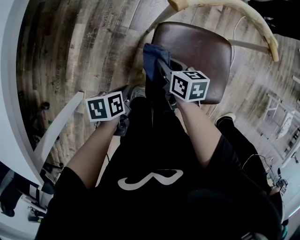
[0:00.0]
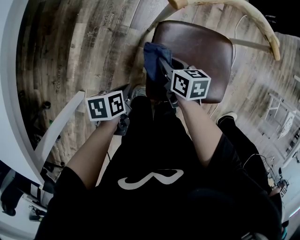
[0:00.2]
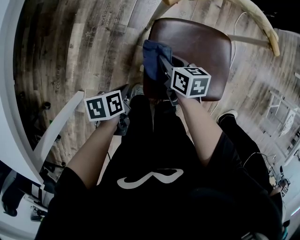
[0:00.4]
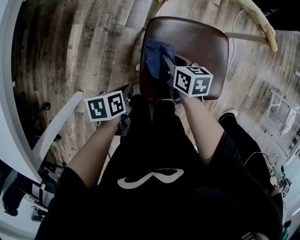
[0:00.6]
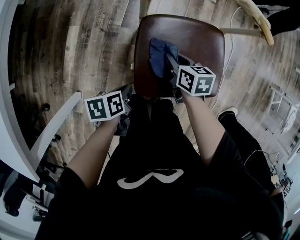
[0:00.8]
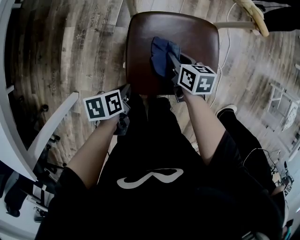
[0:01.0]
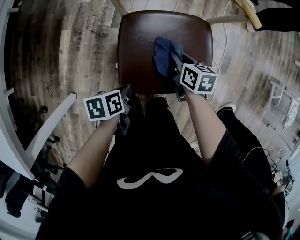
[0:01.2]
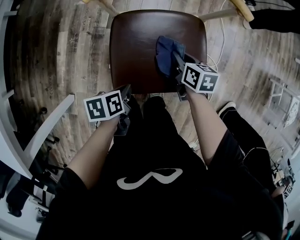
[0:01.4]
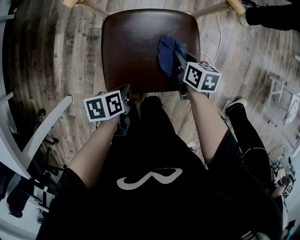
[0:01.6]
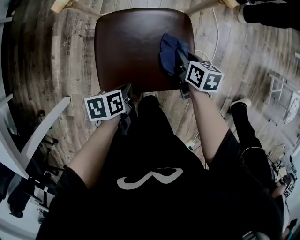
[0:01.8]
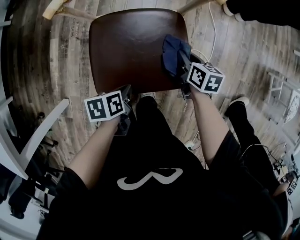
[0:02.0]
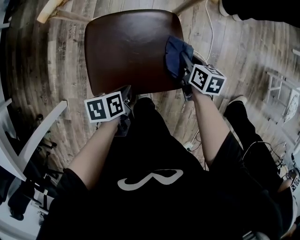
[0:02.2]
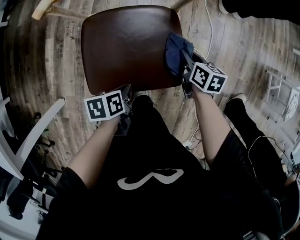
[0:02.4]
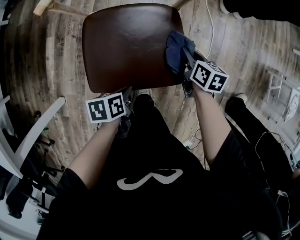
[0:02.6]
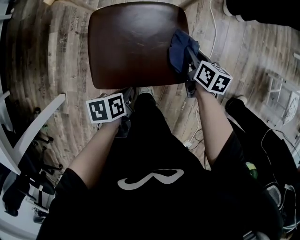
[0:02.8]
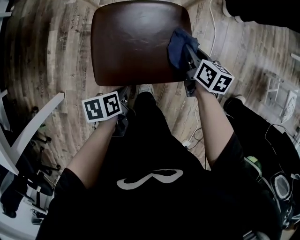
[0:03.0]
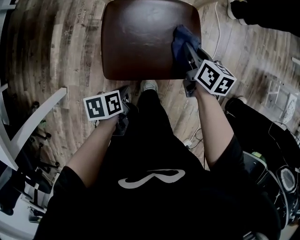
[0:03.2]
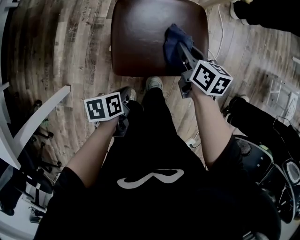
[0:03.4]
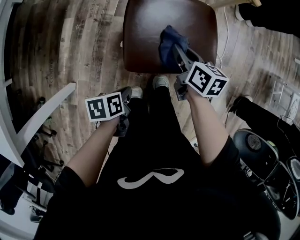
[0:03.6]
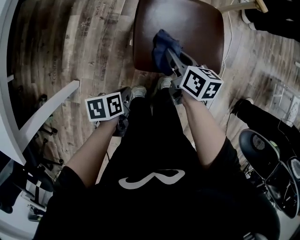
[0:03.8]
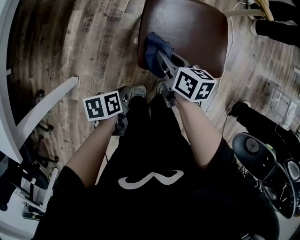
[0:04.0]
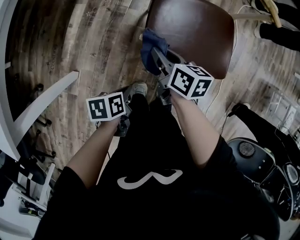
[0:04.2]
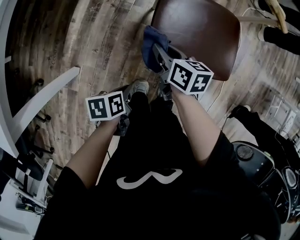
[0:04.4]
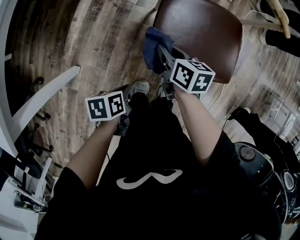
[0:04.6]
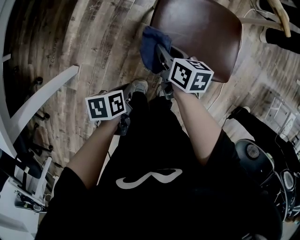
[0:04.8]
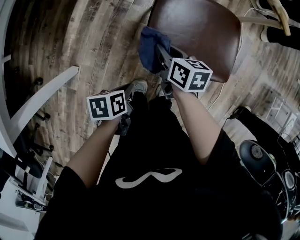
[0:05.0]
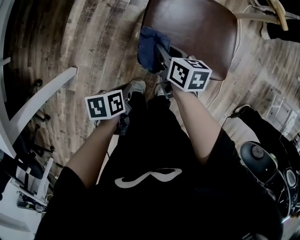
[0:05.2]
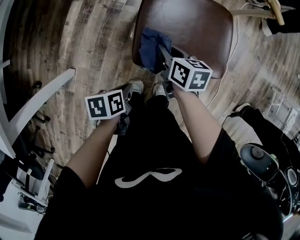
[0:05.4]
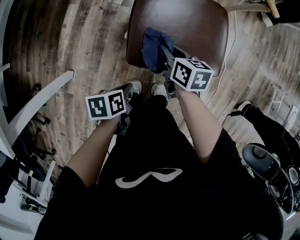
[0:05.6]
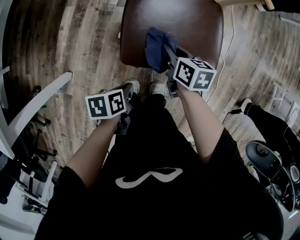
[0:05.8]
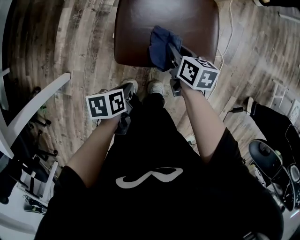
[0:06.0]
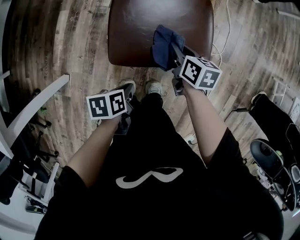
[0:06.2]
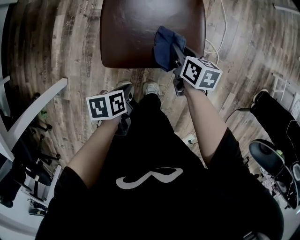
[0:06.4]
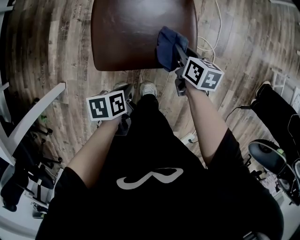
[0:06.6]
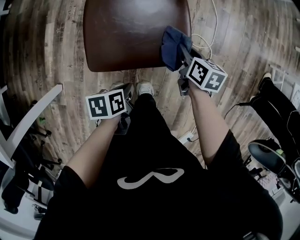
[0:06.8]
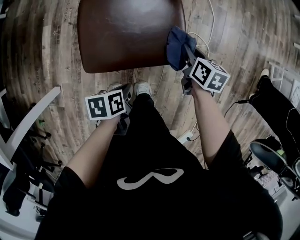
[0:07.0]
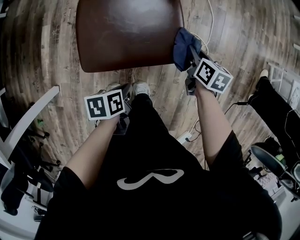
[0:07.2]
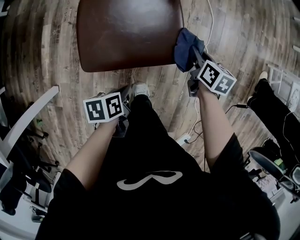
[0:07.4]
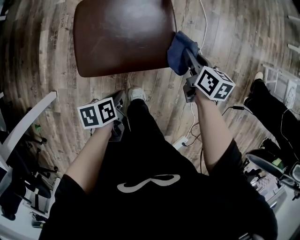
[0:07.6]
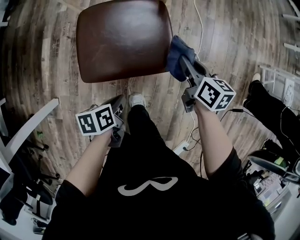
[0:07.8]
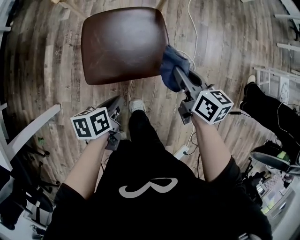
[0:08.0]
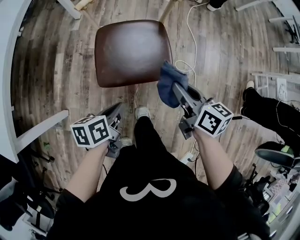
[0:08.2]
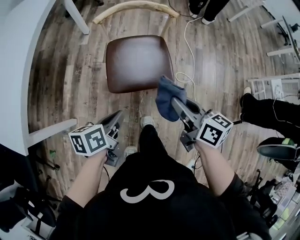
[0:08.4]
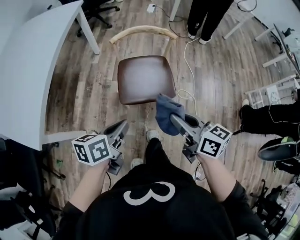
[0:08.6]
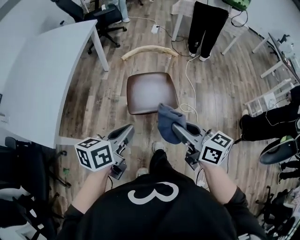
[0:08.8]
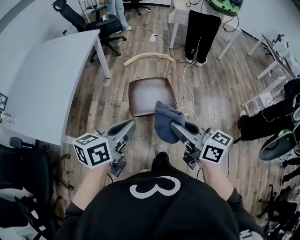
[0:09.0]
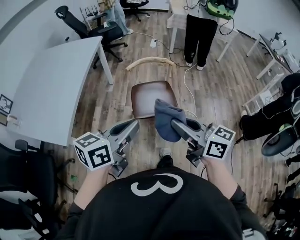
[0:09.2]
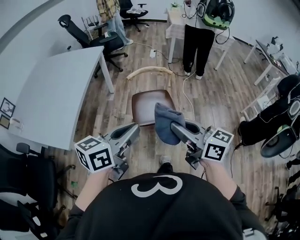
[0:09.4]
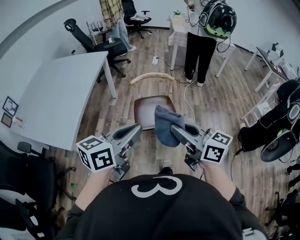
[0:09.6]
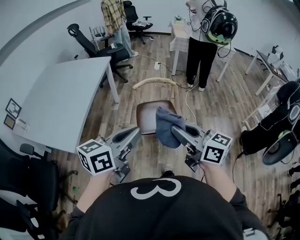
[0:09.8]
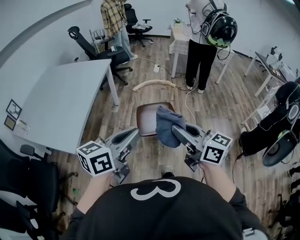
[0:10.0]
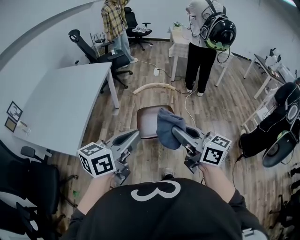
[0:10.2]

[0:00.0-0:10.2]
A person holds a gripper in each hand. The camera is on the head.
0:00.0 to 0:01.4: The right gripper changes place by roughly 20 cm.
0:01.4 to 0:03.0: The right gripper ends up approximately 10 cm from where it was.
0:03.0 to 0:04.4: The right gripper shifts by roughly 35 cm.
0:04.4 to 0:05.8: The right gripper shifts by approximately 15 cm.
0:05.8 to 0:07.2: The right gripper changes place by about 25 cm.
0:07.2 to 0:08.8: The right gripper shifts about 50 cm upward, and angles its fingers upward, by some 40 degrees.
0:08.8 to 0:10.2: The right gripper is displaced upward by about 15 cm.

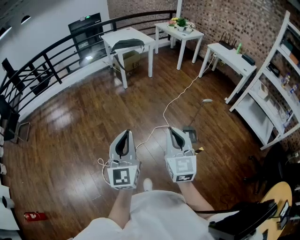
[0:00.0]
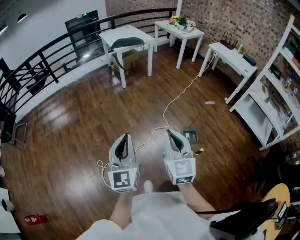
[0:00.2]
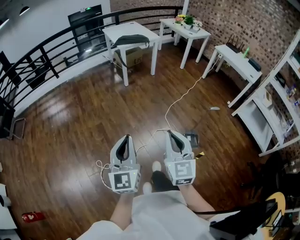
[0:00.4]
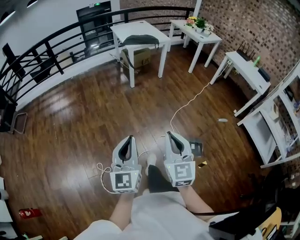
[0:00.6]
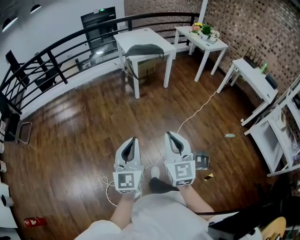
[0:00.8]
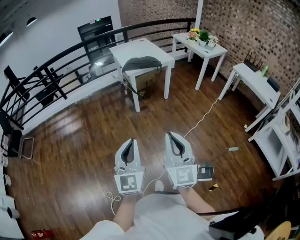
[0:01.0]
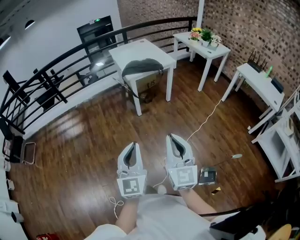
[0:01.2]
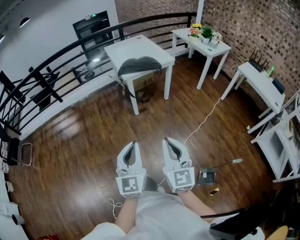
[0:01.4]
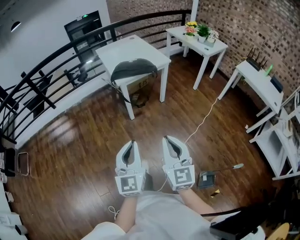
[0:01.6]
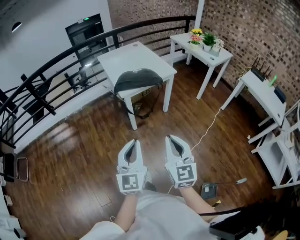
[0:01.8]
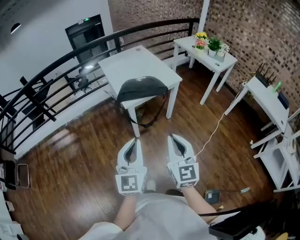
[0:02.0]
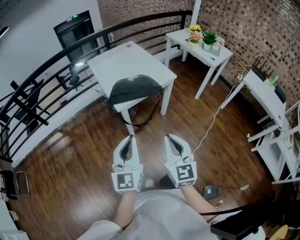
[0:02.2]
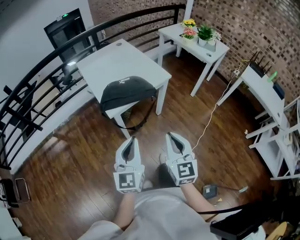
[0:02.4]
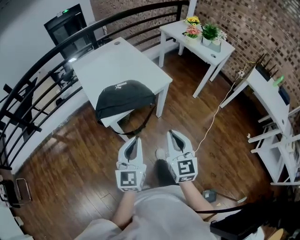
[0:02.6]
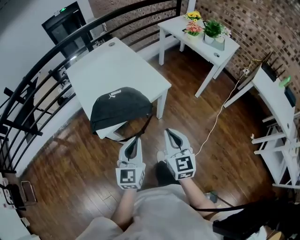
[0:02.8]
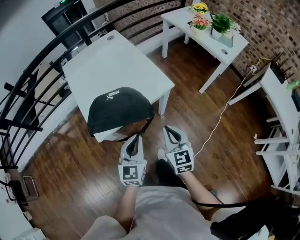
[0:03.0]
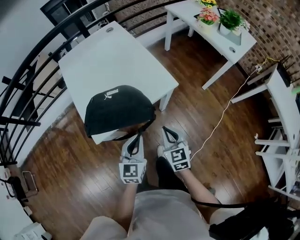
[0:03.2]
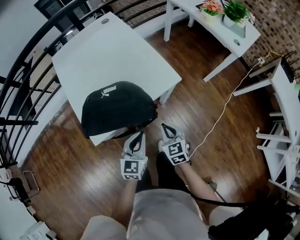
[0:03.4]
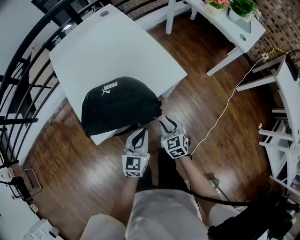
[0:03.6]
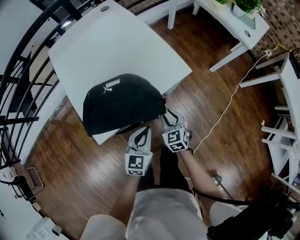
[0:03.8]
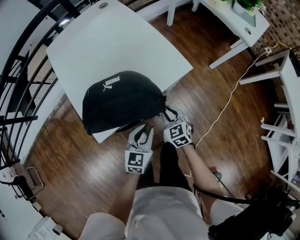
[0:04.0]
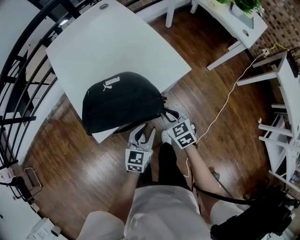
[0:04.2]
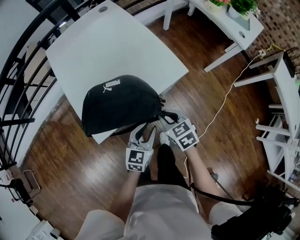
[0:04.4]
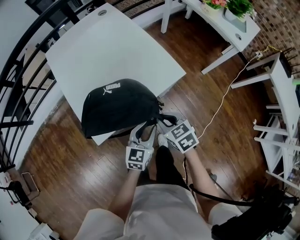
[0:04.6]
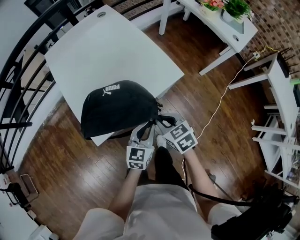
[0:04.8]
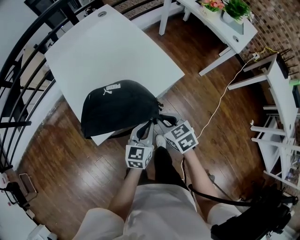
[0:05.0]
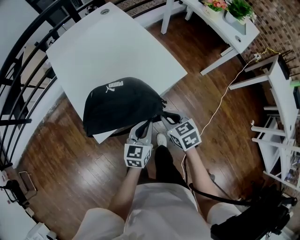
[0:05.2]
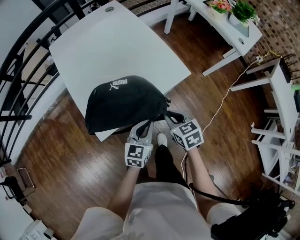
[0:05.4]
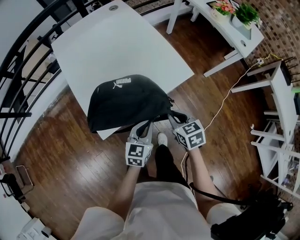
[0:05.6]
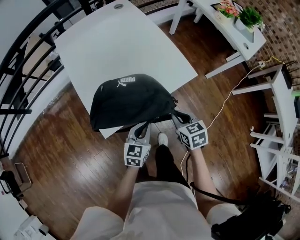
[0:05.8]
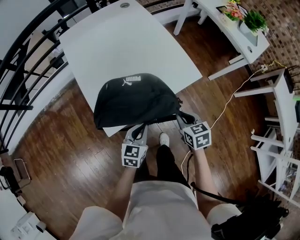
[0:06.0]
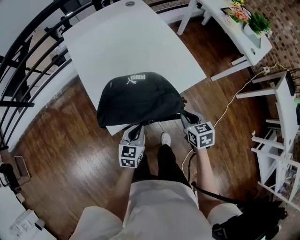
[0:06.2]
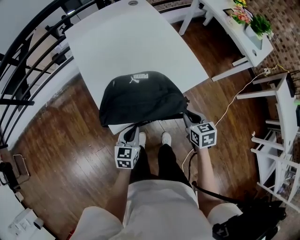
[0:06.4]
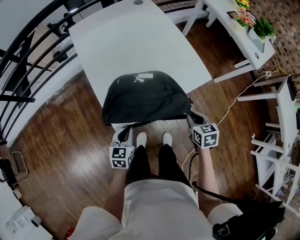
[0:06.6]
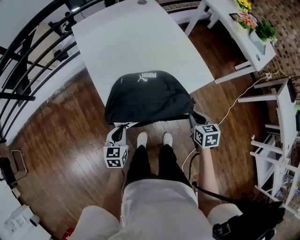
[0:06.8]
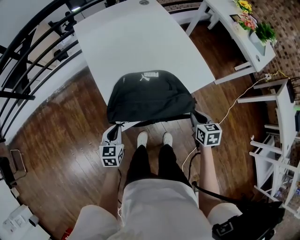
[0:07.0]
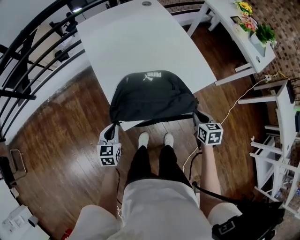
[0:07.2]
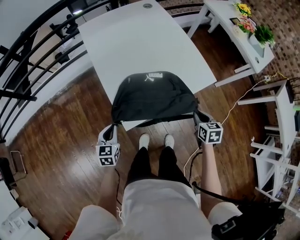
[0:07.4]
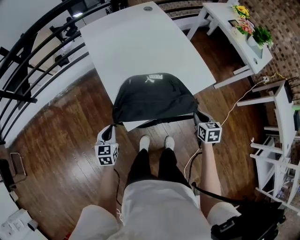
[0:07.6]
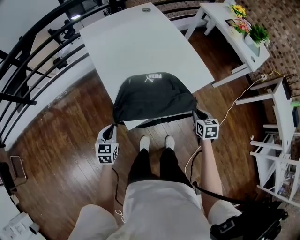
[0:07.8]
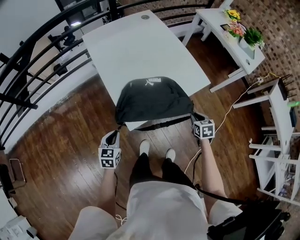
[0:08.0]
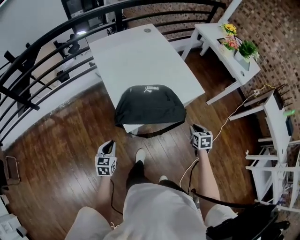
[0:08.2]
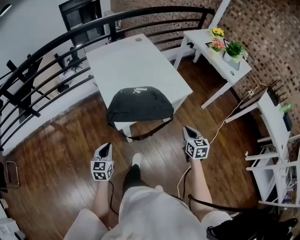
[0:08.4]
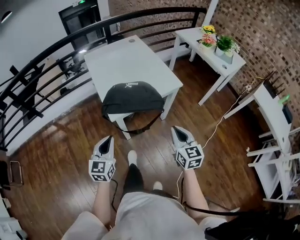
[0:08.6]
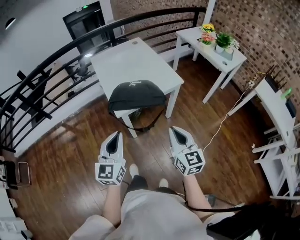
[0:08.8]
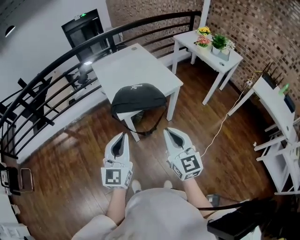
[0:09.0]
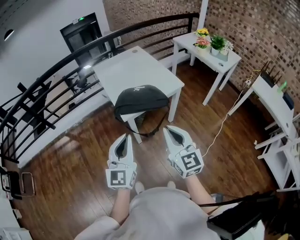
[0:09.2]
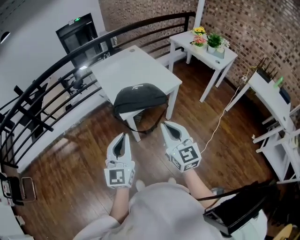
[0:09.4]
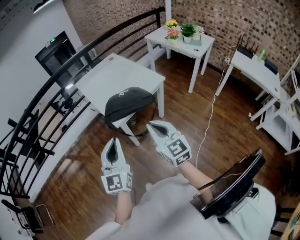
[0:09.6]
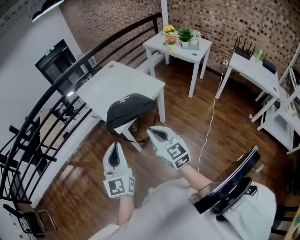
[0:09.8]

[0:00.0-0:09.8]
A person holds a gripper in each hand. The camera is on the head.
0:00.0 to 0:01.4: The pair of grippers is taken forward, roughly 60 cm.
0:01.4 to 0:02.8: The two grippers travel together, forward, about 60 cm.
0:02.8 to 0:04.2: The two grippers go approximately 30 cm downward and forward. The right gripper turns by roughly 40 degrees, while the left gripper changes its angle by some 20 degrees, and opens up.
0:04.2 to 0:05.6: The left gripper closes its fingers. Meanwhile the right gripper heads upward, covering roughly 5 cm.
0:05.6 to 0:07.0: The left gripper moves to the left, approximately 25 cm, and rotates about 20 degrees.
0:07.0 to 0:08.4: The grippers both shift backward and upward by roughly 15 cm.
0:08.4 to 0:09.8: The left gripper moves upward and backward, roughly 35 cm, and points its fingers about 40 degrees further upward, while the right gripper goes approximately 35 cm upward, backward and to the left, and turns by some 30 degrees.

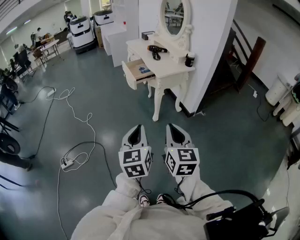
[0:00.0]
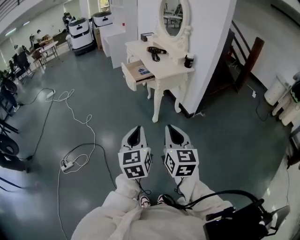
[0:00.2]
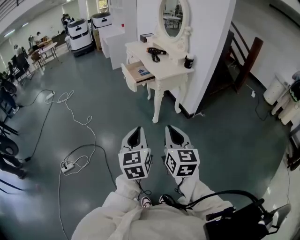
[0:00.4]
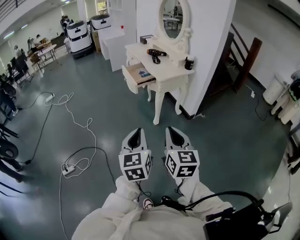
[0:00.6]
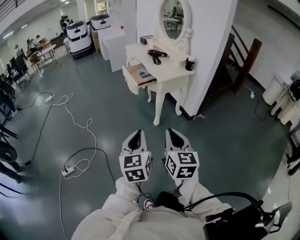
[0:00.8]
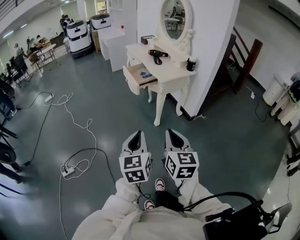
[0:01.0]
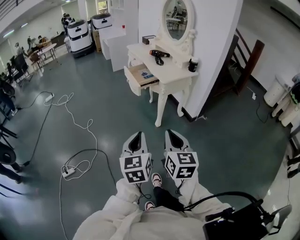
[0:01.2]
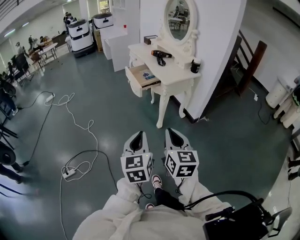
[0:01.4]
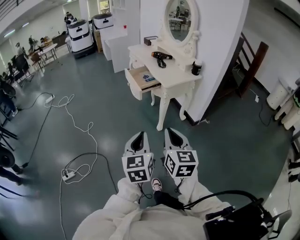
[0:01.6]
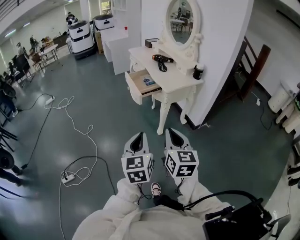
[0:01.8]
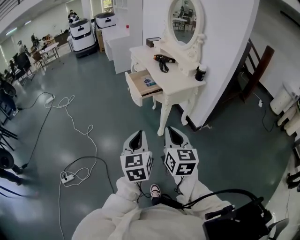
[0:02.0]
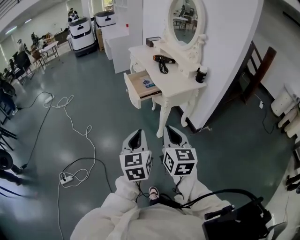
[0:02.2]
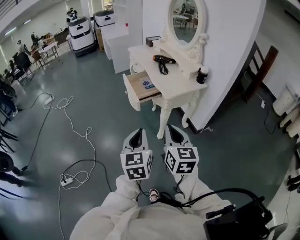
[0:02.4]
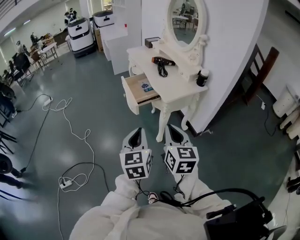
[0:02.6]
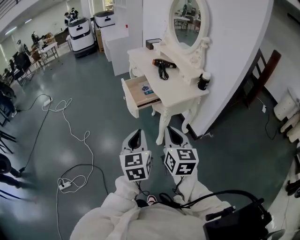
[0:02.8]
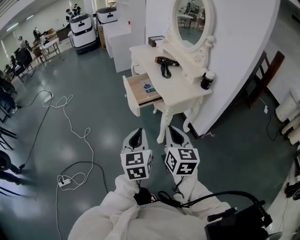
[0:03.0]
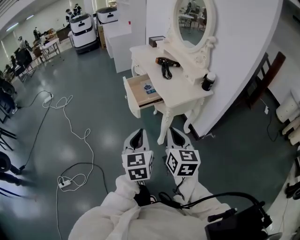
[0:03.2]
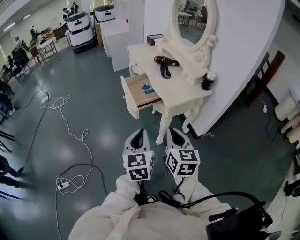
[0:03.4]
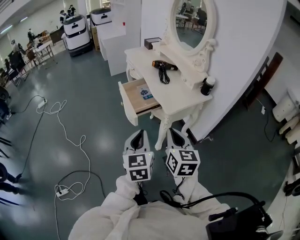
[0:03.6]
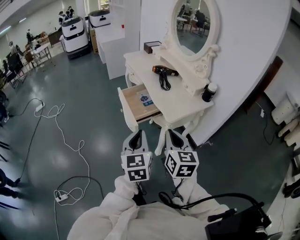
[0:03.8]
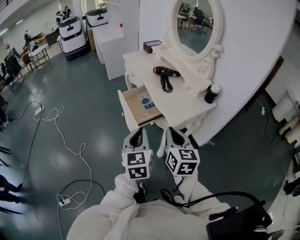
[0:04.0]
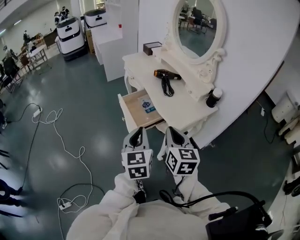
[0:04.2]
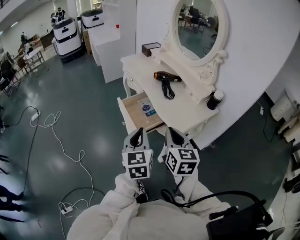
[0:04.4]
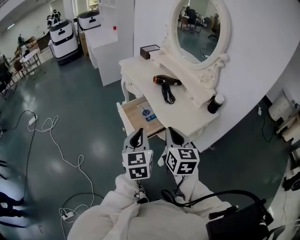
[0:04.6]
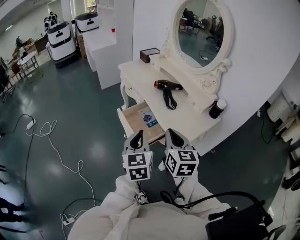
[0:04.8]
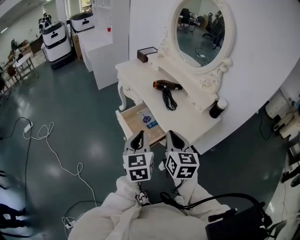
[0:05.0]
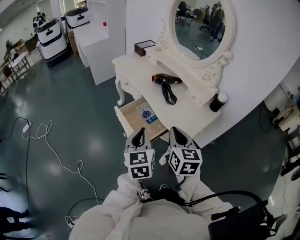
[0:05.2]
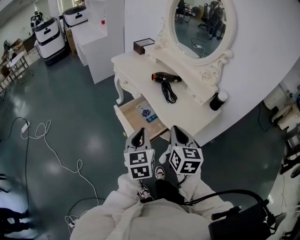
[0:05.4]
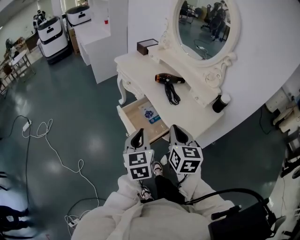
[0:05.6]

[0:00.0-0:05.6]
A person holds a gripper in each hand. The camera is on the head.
0:00.0 to 0:01.4: Both grippers move to the left and forward, some 10 cm.
0:01.4 to 0:02.8: Both grippers travel together forward, some 25 cm.
0:02.8 to 0:04.2: Both grippers travel together forward, approximately 25 cm.
0:04.2 to 0:05.6: The two grippers go approximately 15 cm forward and to the left.
